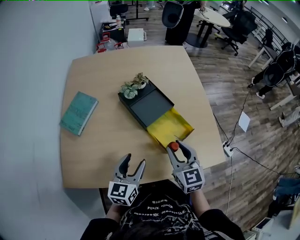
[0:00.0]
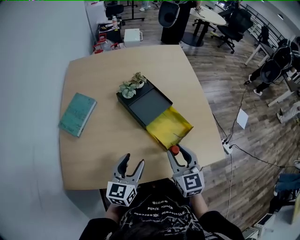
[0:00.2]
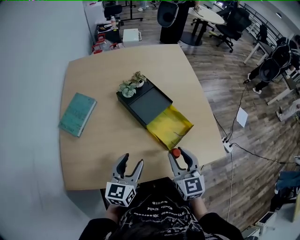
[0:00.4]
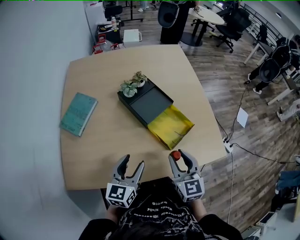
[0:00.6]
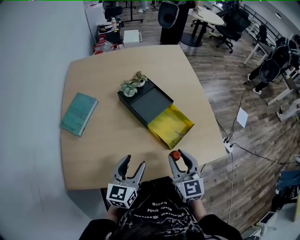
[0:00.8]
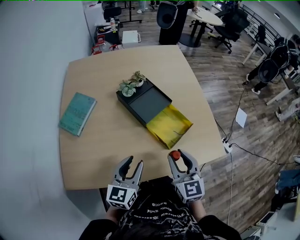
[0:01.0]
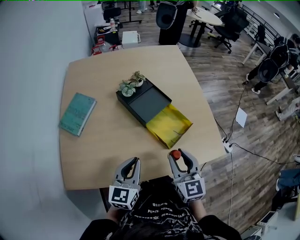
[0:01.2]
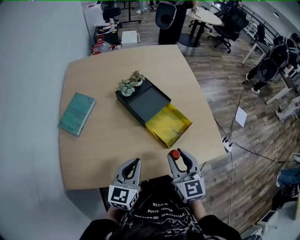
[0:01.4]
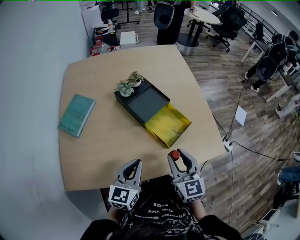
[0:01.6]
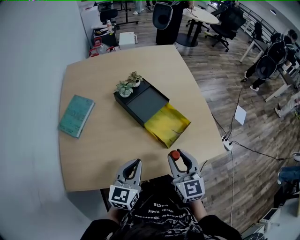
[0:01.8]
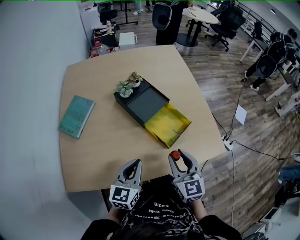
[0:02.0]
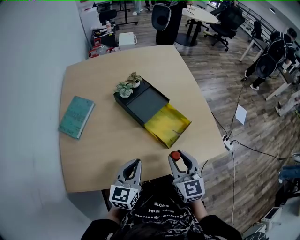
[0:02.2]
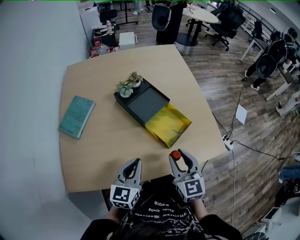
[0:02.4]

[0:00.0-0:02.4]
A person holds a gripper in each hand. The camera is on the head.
0:00.0 to 0:01.2: The left gripper closes; the right gripper heads backward, covering some 5 cm.
0:01.2 to 0:02.4: The grippers move only a little.

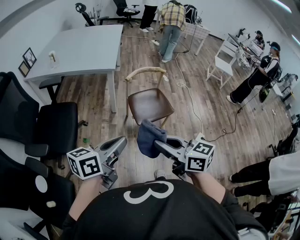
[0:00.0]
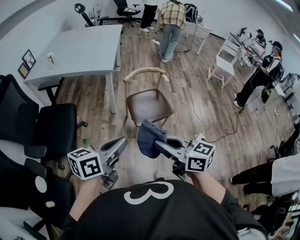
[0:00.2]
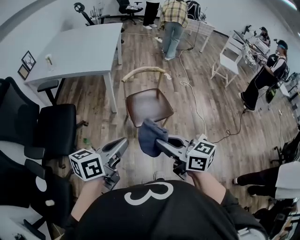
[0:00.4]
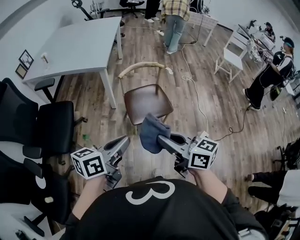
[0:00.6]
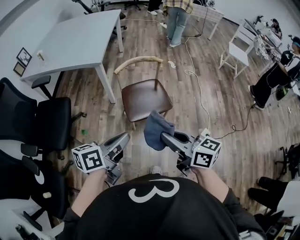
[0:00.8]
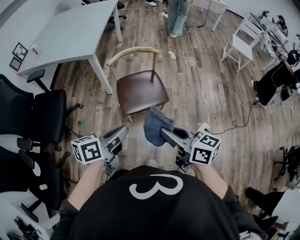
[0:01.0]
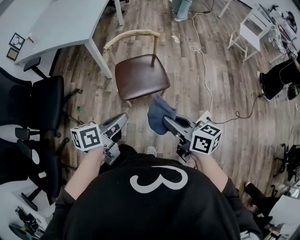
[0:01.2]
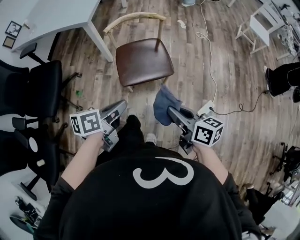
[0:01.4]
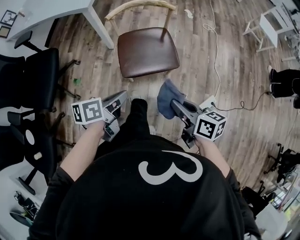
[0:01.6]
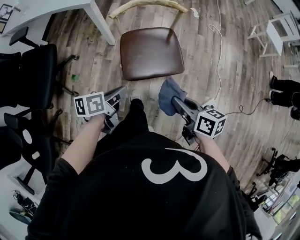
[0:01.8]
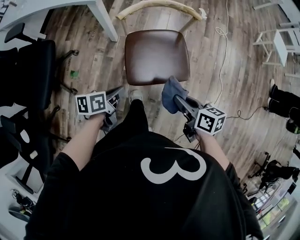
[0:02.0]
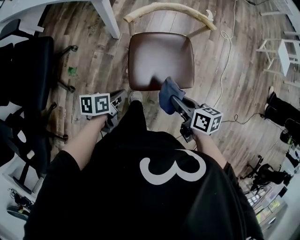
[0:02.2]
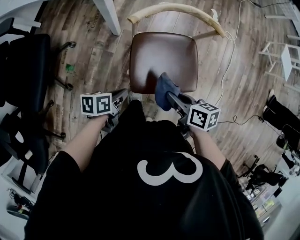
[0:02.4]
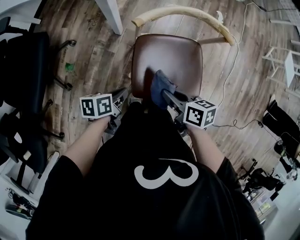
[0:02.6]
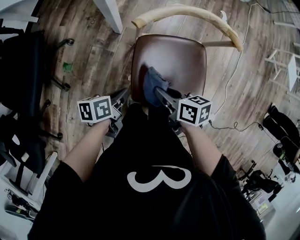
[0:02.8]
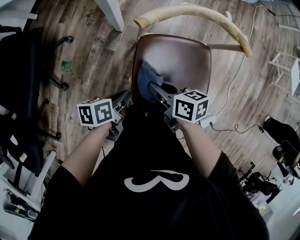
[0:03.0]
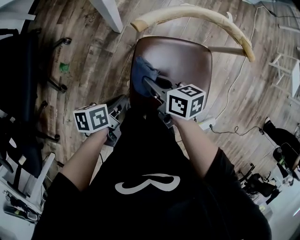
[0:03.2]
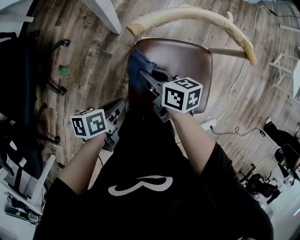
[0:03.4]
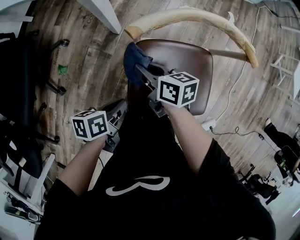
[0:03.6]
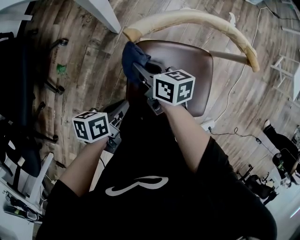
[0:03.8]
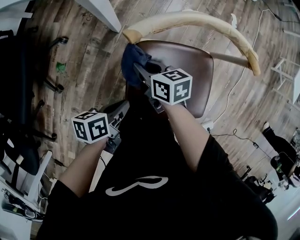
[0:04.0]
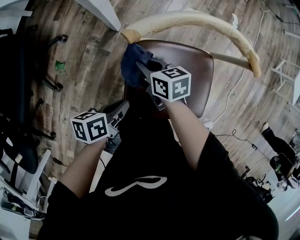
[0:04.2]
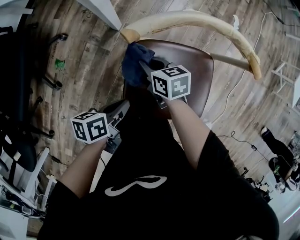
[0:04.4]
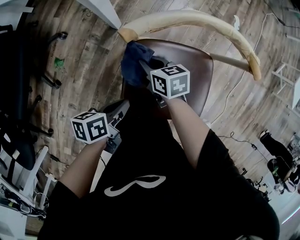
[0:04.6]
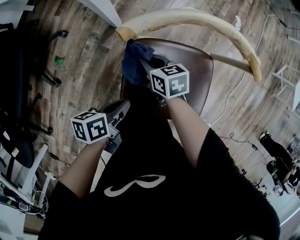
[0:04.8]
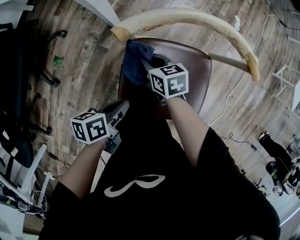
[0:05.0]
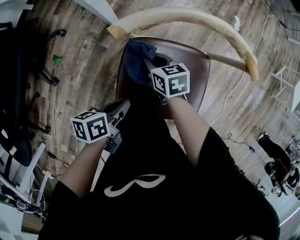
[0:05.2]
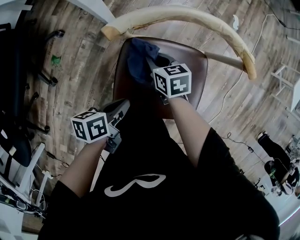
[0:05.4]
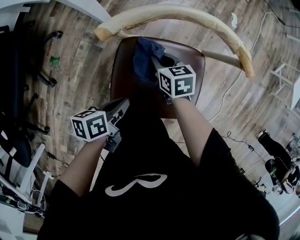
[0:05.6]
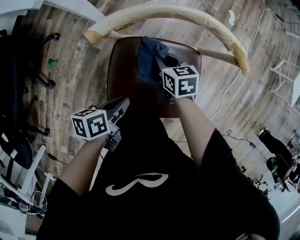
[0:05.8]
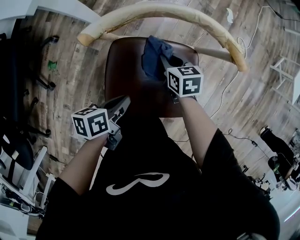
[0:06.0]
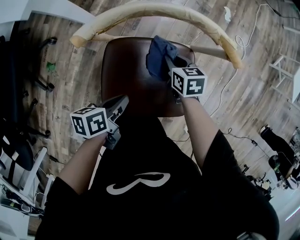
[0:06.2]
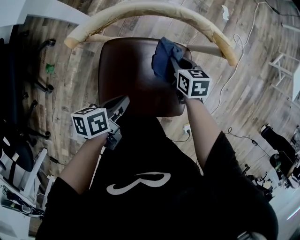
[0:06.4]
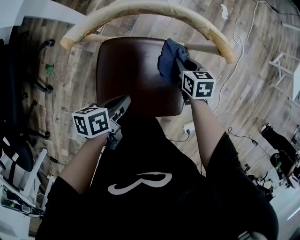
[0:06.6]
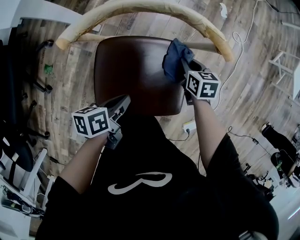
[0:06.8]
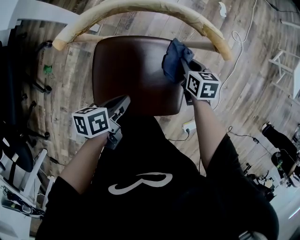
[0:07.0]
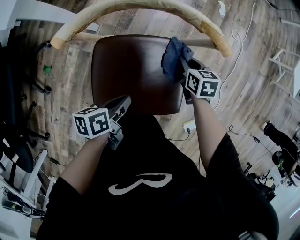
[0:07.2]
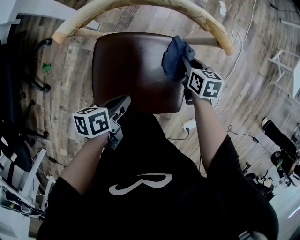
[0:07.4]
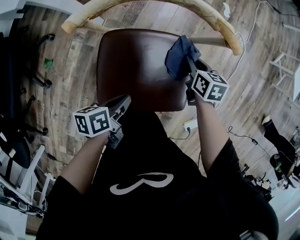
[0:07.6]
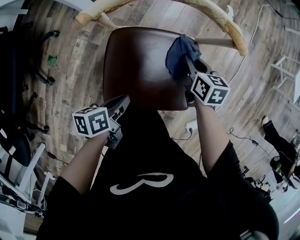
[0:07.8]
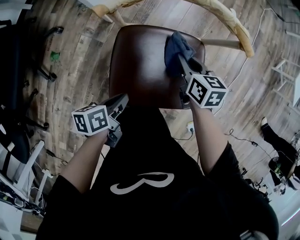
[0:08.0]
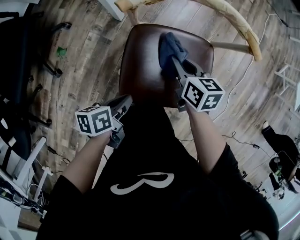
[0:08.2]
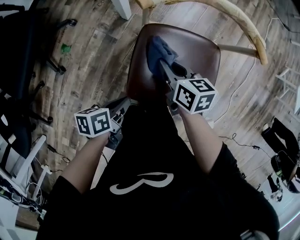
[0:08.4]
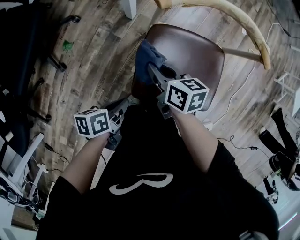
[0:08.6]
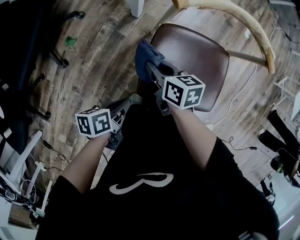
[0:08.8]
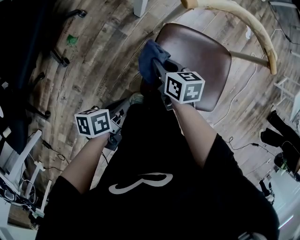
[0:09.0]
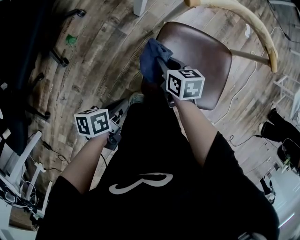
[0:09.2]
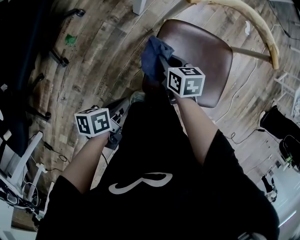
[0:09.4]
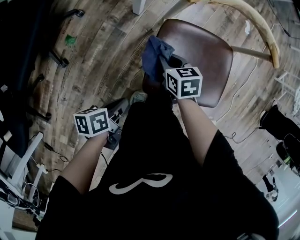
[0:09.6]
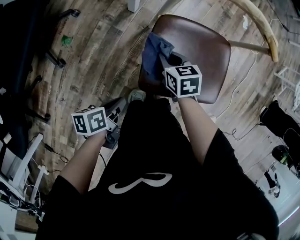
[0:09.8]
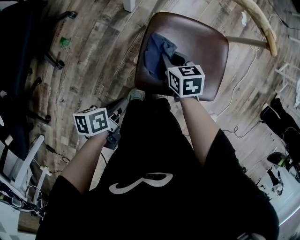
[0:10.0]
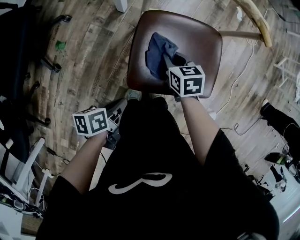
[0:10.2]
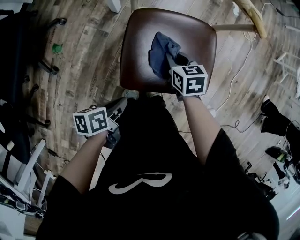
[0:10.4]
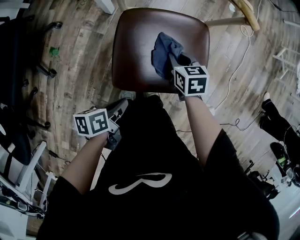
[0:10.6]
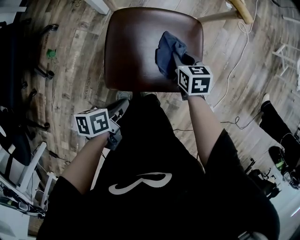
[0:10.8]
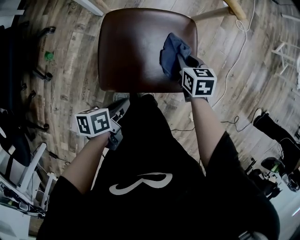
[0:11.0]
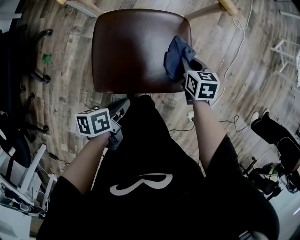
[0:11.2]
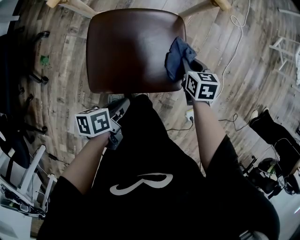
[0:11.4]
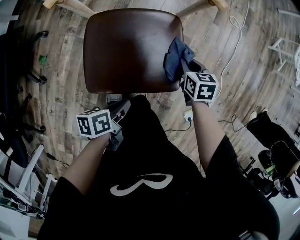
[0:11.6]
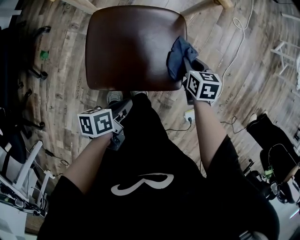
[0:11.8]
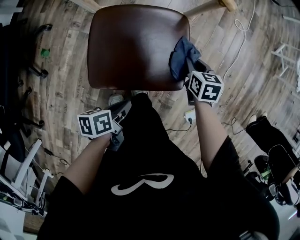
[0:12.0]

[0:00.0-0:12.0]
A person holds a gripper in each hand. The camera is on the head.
0:00.0 to 0:01.6: The right gripper moves some 40 cm, and swivels about 30 degrees.
0:01.6 to 0:03.0: The right gripper shifts by approximately 40 cm, and swivels approximately 20 degrees.
0:03.0 to 0:04.4: The right gripper moves about 15 cm.
0:04.4 to 0:06.0: The right gripper moves roughly 15 cm.
0:06.0 to 0:07.6: The right gripper shifts by roughly 15 cm.
0:07.6 to 0:09.0: The right gripper ends up roughly 35 cm from where it was, and turns by approximately 20 degrees.
0:09.0 to 0:10.4: The right gripper shifts by approximately 15 cm.
0:10.4 to 0:12.0: The right gripper ends up roughly 20 cm from where it was.

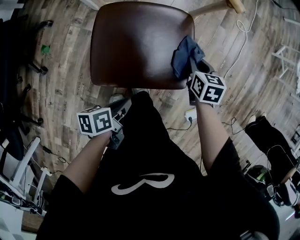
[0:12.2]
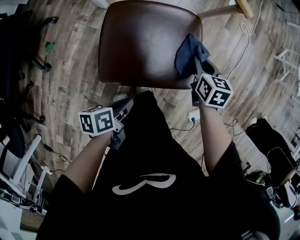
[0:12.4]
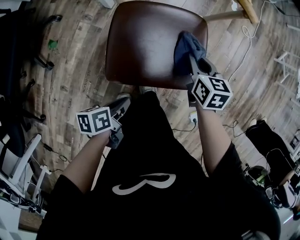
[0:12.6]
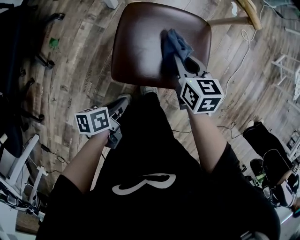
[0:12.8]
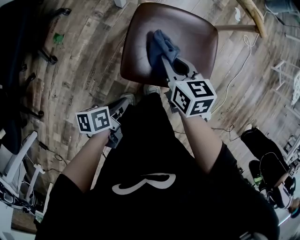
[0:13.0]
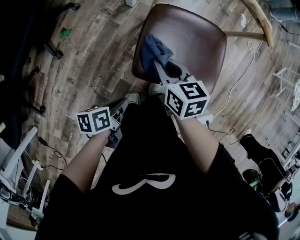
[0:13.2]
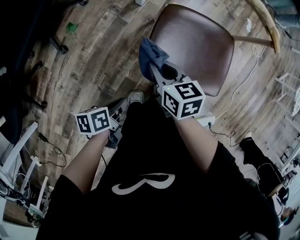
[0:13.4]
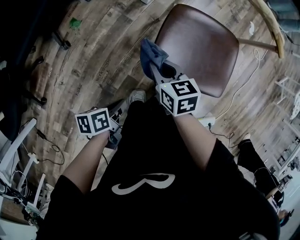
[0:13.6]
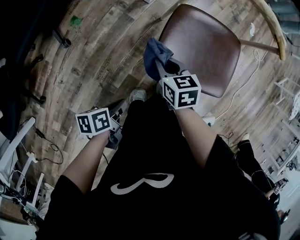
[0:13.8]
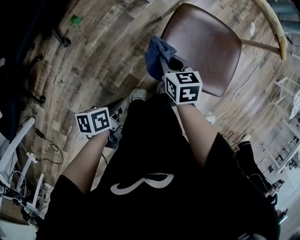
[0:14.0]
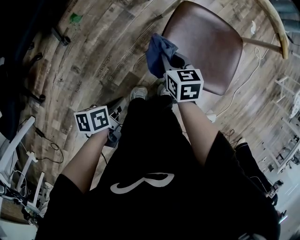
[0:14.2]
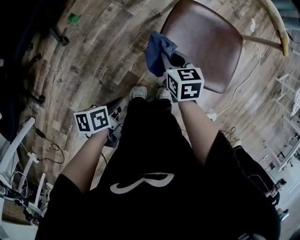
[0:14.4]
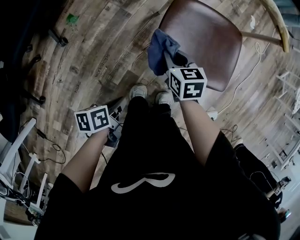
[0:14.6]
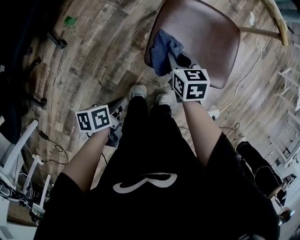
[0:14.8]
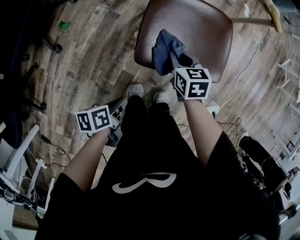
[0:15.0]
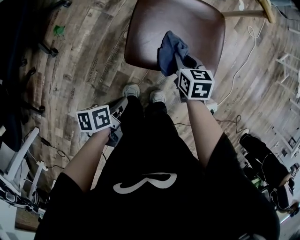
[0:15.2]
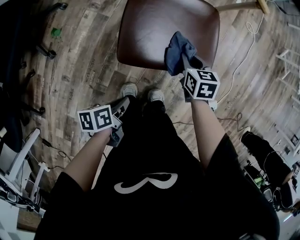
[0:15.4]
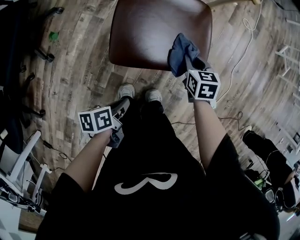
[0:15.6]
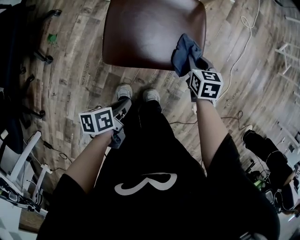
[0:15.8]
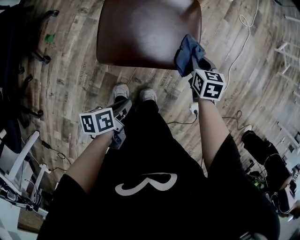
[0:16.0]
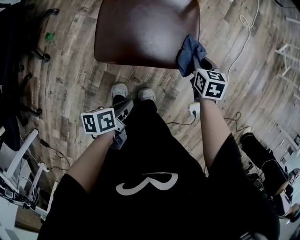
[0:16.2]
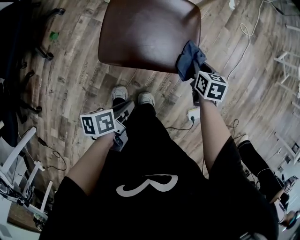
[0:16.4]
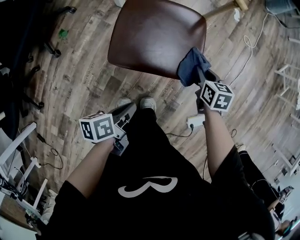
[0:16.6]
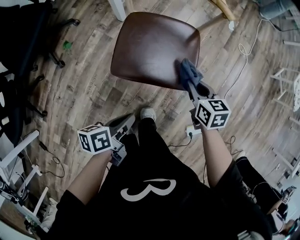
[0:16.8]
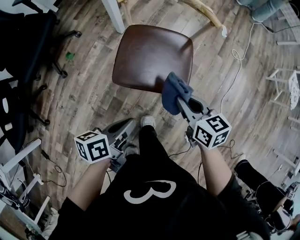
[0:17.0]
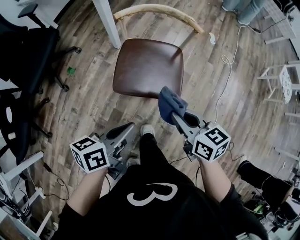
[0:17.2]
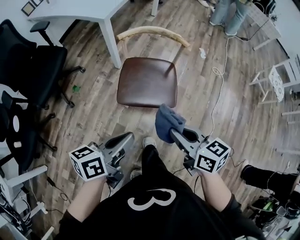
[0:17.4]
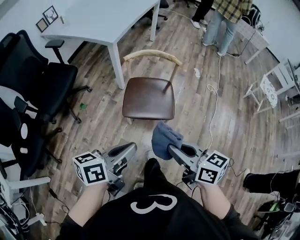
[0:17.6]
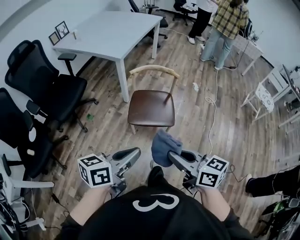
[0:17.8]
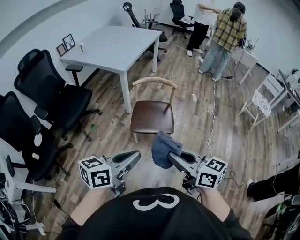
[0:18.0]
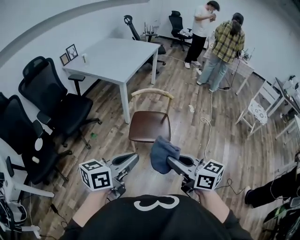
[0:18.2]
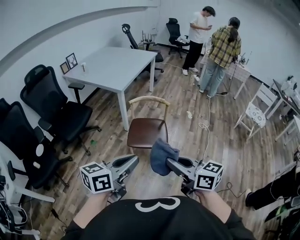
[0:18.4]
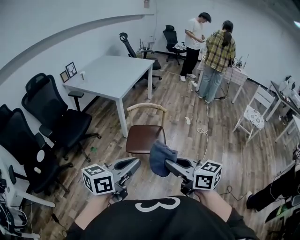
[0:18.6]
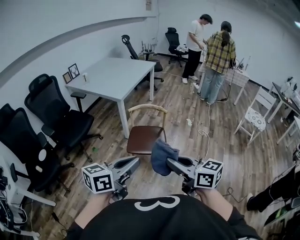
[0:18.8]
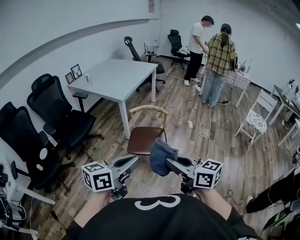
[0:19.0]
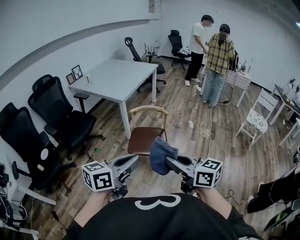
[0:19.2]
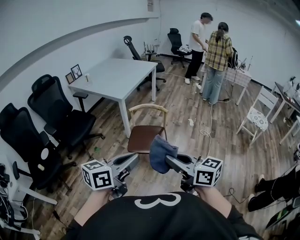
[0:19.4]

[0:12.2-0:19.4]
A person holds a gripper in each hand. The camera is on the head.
0:12.2 to 0:13.6: The right gripper changes place by some 40 cm, and rotates roughly 30 degrees.
0:13.6 to 0:15.0: The right gripper shifts by about 15 cm.
0:15.0 to 0:16.6: The right gripper shifts by about 25 cm.
0:16.6 to 0:18.0: The right gripper is displaced upward by roughly 50 cm, and points its fingers some 40 degrees further upward.
0:18.0 to 0:19.4: The right gripper heads upward, covering some 10 cm.

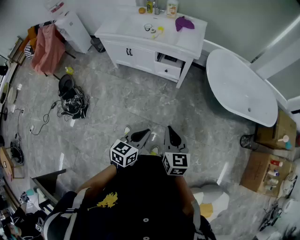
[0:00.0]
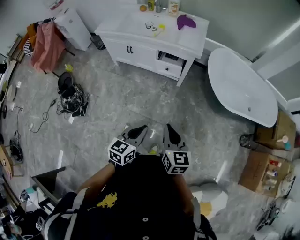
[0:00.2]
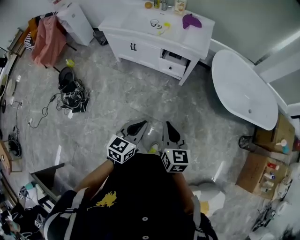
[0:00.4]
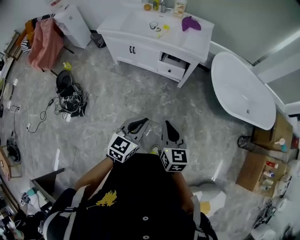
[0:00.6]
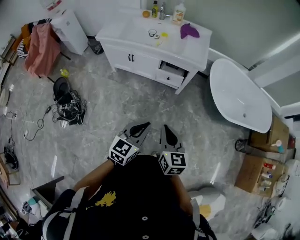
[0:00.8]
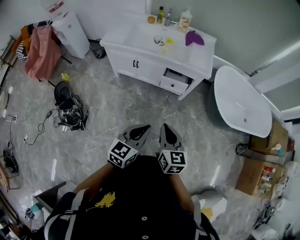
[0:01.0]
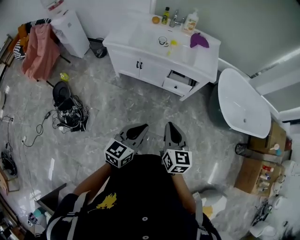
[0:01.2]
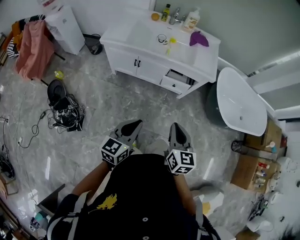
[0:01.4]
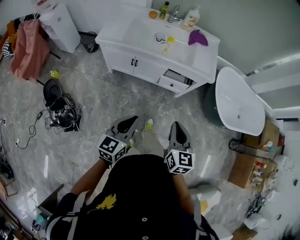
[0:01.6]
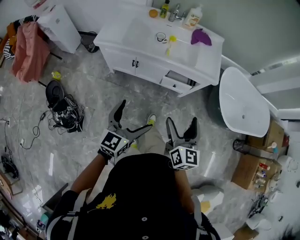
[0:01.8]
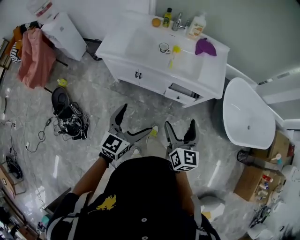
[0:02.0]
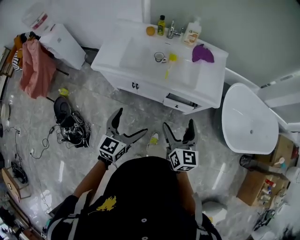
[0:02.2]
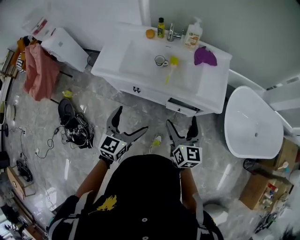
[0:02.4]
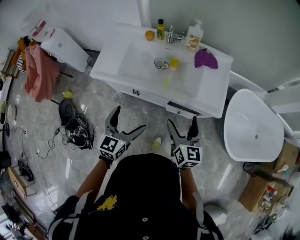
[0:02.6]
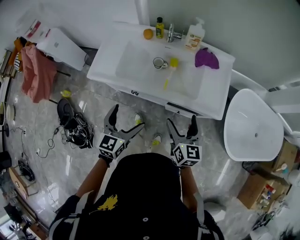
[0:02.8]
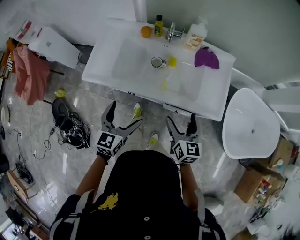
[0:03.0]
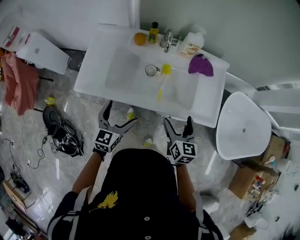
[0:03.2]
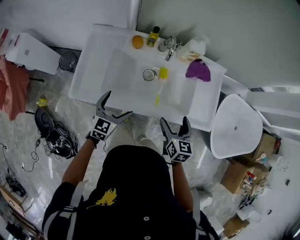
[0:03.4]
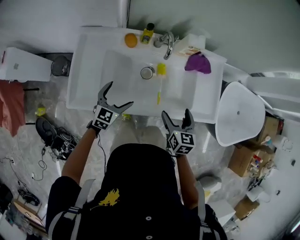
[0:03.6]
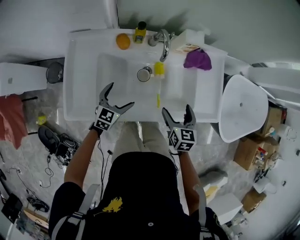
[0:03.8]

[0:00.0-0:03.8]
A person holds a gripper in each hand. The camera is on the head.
0:00.0 to 0:01.2: The grippers both shift to the left and forward by about 30 cm.
0:01.2 to 0:02.6: The pair of grippers is taken forward, roughly 40 cm. The right gripper opens. Meanwhile the left gripper opens.
0:02.6 to 0:03.8: Both grippers travel together forward, downward and to the left, about 35 cm. The right gripper changes its angle by some 30 degrees. The left gripper turns by some 30 degrees.
